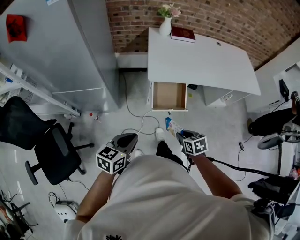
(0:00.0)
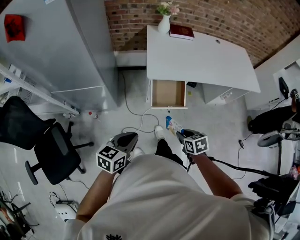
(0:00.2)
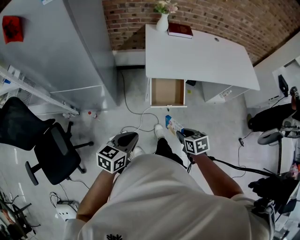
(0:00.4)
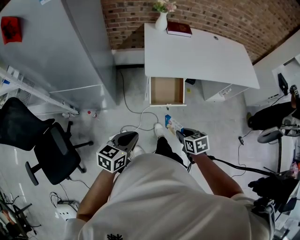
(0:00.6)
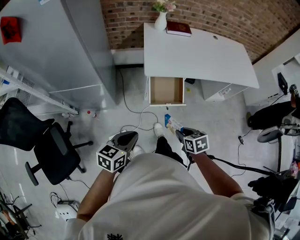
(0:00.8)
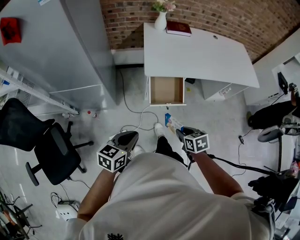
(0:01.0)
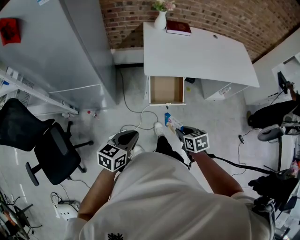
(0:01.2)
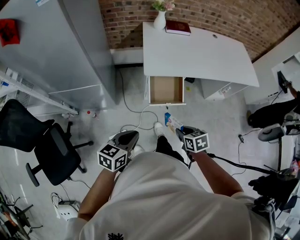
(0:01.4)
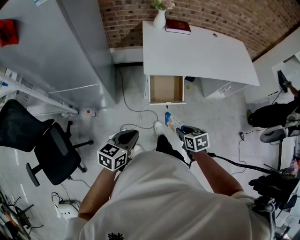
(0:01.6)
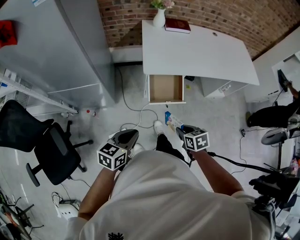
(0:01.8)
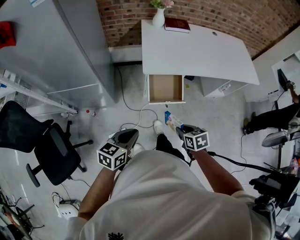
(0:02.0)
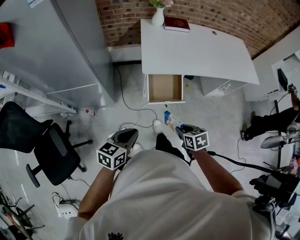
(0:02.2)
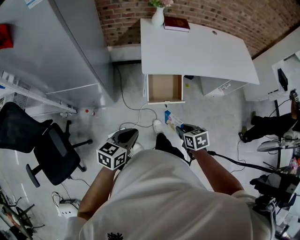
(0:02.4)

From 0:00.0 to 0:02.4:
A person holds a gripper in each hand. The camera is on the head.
From 0:00.0 to 0:02.4: There are only small adjustments of the grippers.

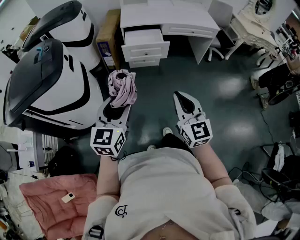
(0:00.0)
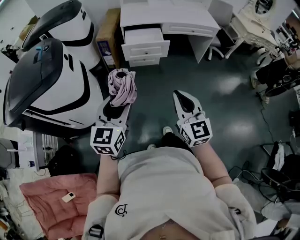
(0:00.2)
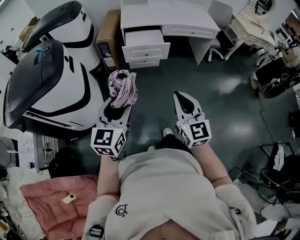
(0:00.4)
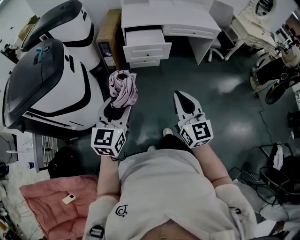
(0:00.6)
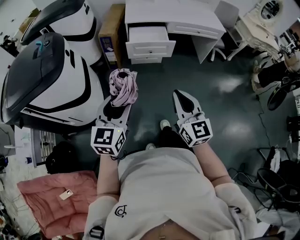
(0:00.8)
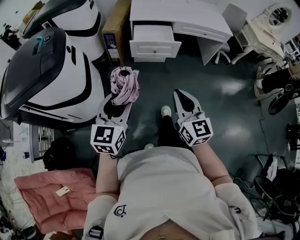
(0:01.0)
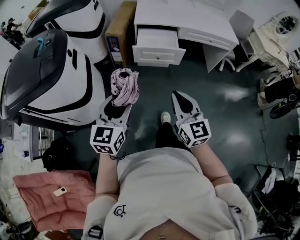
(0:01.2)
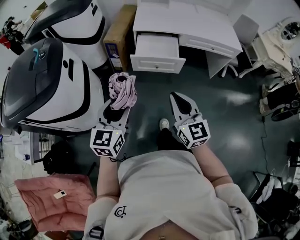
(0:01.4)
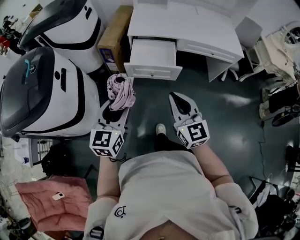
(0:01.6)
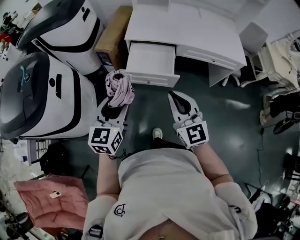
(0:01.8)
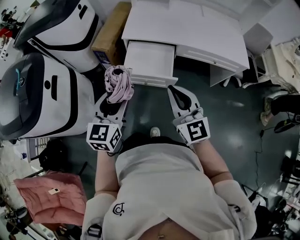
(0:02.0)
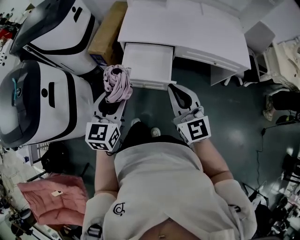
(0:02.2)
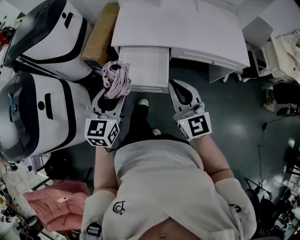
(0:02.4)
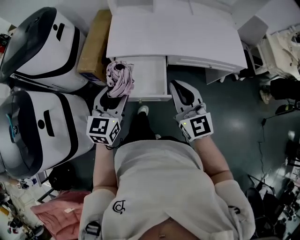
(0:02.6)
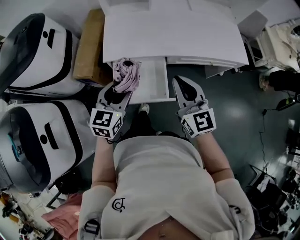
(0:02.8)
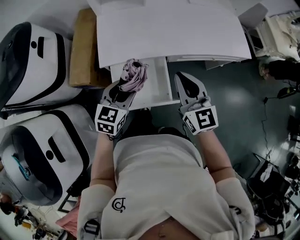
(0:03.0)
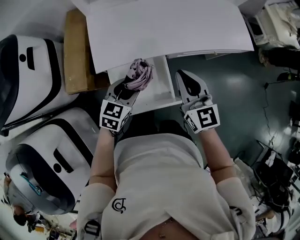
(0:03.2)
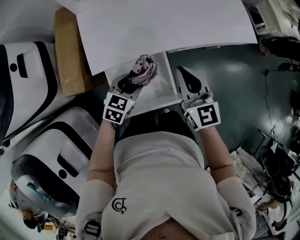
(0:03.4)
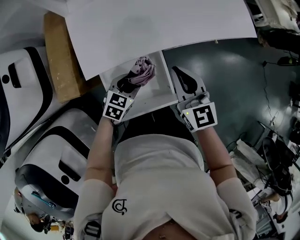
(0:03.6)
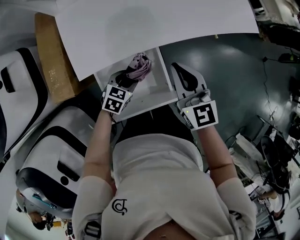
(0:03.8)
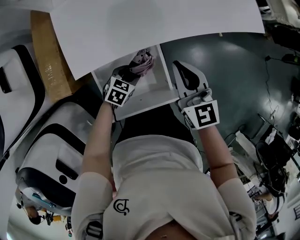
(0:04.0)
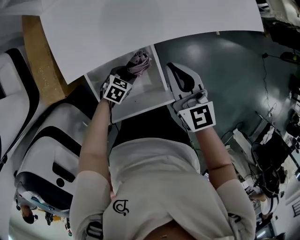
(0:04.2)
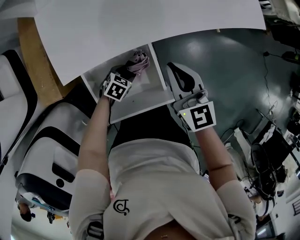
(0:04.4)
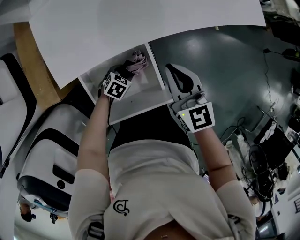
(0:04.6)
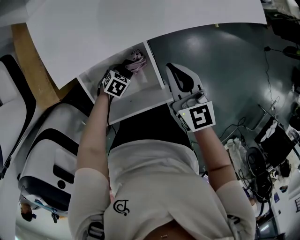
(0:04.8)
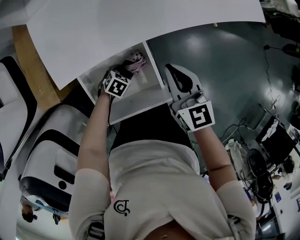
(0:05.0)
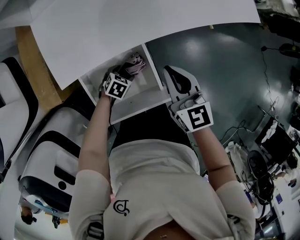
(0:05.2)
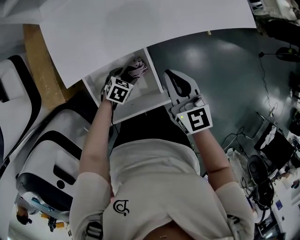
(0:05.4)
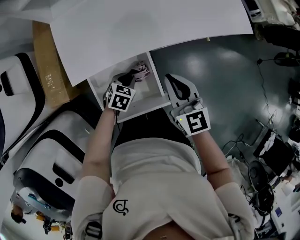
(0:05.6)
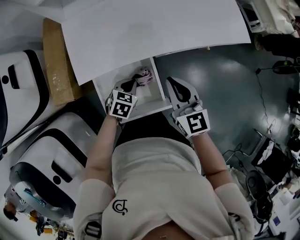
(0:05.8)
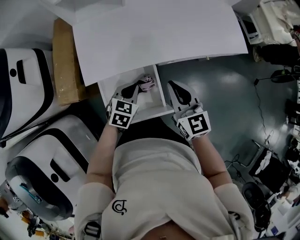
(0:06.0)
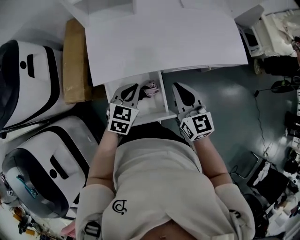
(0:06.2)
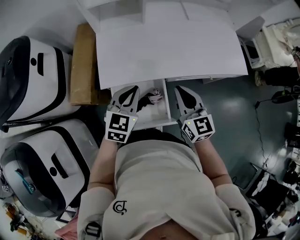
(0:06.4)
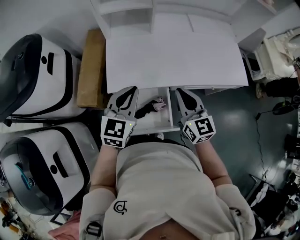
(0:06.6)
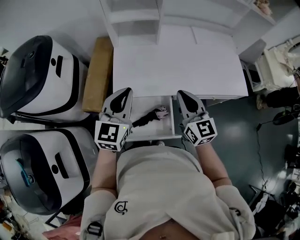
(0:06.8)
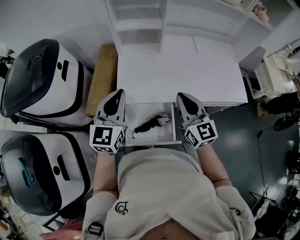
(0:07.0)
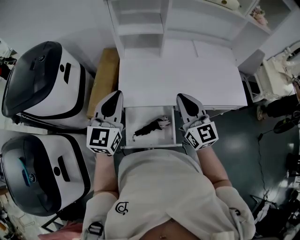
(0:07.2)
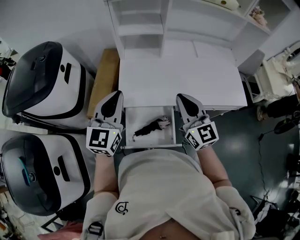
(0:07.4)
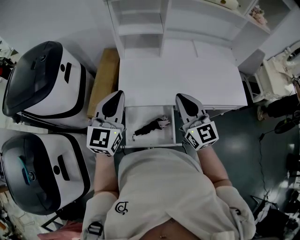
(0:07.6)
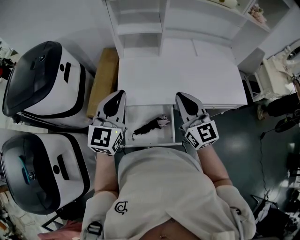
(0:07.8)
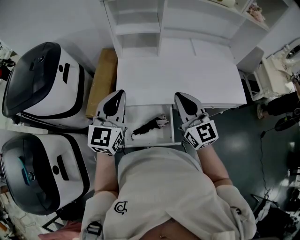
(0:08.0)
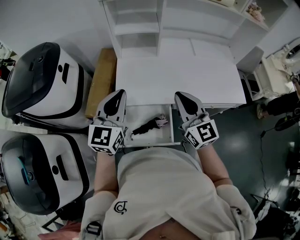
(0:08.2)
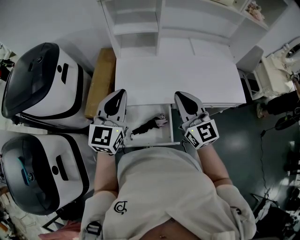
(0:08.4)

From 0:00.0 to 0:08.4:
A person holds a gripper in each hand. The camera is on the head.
From 0:00.0 to 0:01.4: Both grippers travel together forward, approximately 20 cm.
From 0:01.4 to 0:02.8: The two grippers travel together, forward, roughly 40 cm.
From 0:02.8 to 0:04.2: The right gripper shifts approximately 15 cm downward. The left gripper shifts approximately 35 cm downward, and points its fingers some 30 degrees further downward.
From 0:04.2 to 0:05.6: The left gripper shifts roughly 5 cm upward, and closes its fingers.
From 0:05.6 to 0:07.0: The left gripper goes some 40 cm upward, and points its fingers about 50 degrees further upward; the right gripper moves upward, approximately 15 cm, and changes its angle by approximately 20 degrees.
From 0:07.0 to 0:08.4: The grippers stay close to where they were, moving slightly.

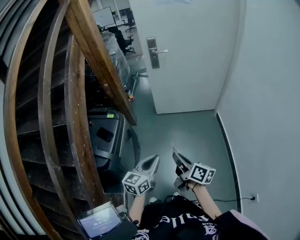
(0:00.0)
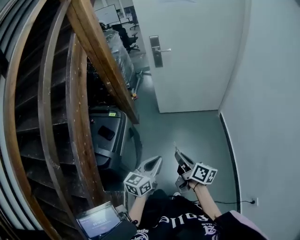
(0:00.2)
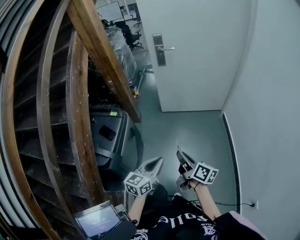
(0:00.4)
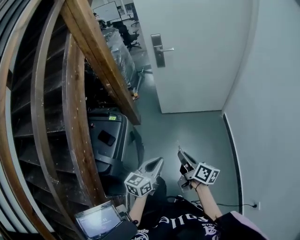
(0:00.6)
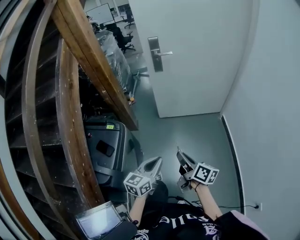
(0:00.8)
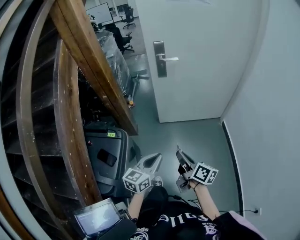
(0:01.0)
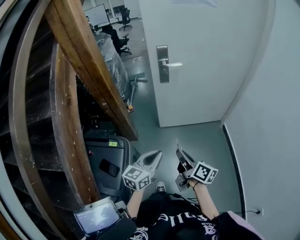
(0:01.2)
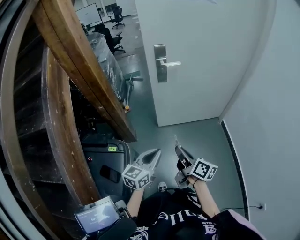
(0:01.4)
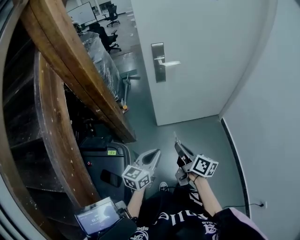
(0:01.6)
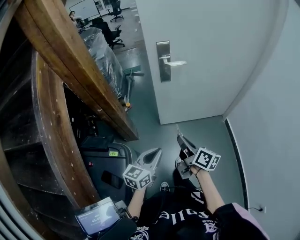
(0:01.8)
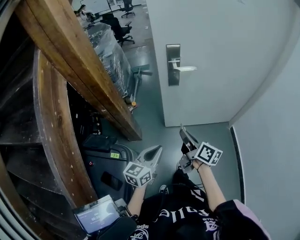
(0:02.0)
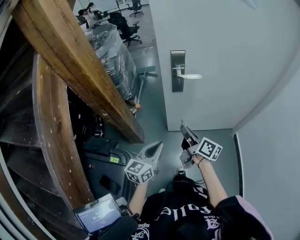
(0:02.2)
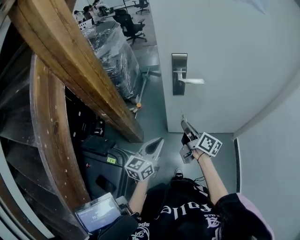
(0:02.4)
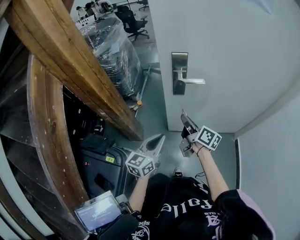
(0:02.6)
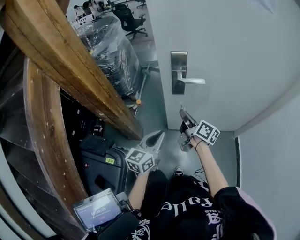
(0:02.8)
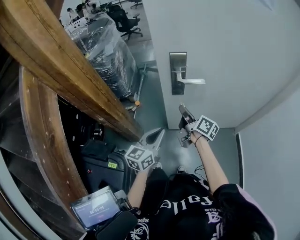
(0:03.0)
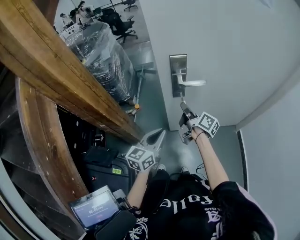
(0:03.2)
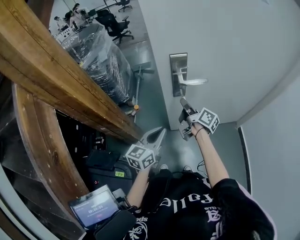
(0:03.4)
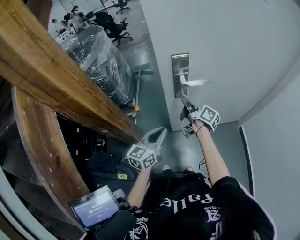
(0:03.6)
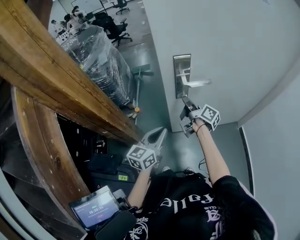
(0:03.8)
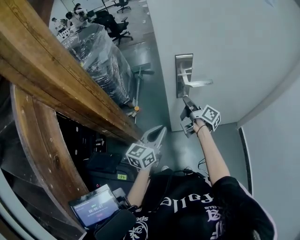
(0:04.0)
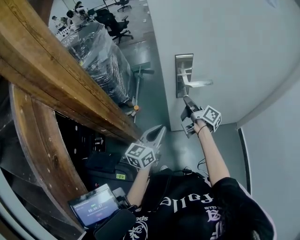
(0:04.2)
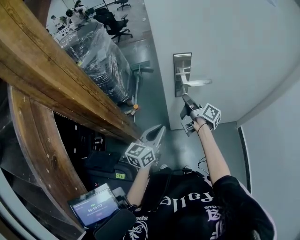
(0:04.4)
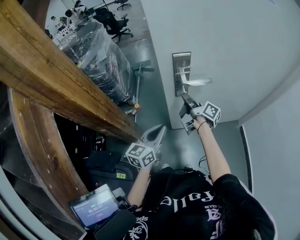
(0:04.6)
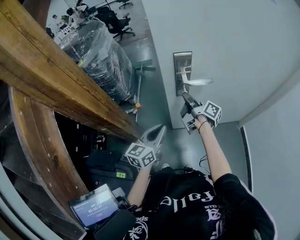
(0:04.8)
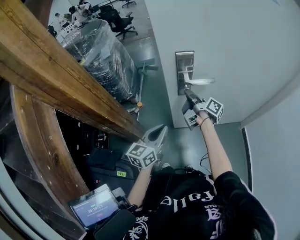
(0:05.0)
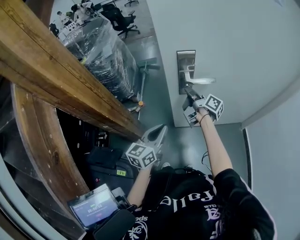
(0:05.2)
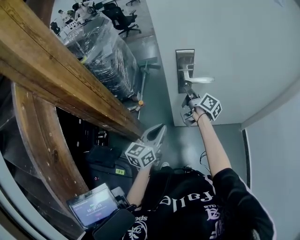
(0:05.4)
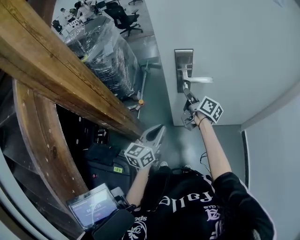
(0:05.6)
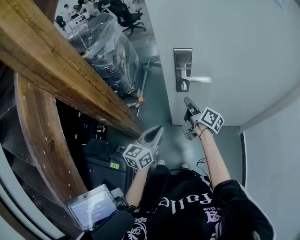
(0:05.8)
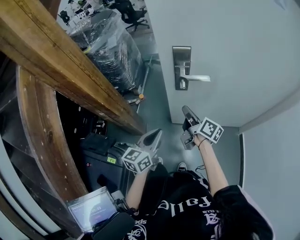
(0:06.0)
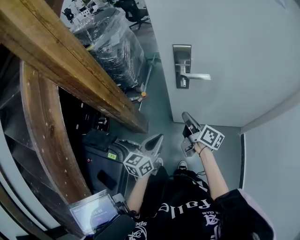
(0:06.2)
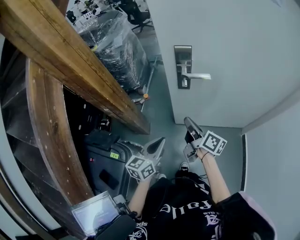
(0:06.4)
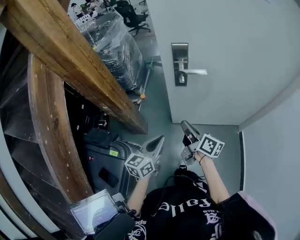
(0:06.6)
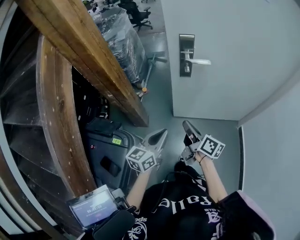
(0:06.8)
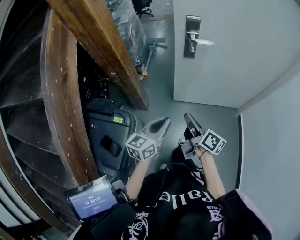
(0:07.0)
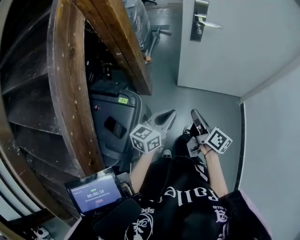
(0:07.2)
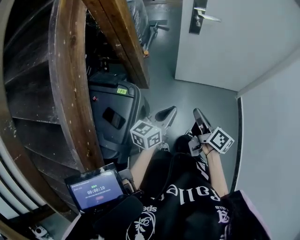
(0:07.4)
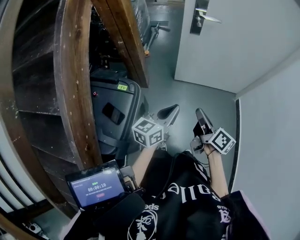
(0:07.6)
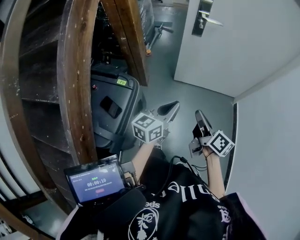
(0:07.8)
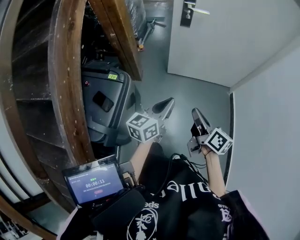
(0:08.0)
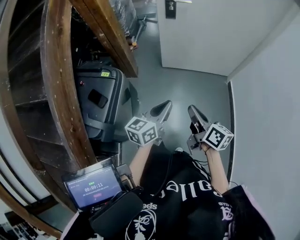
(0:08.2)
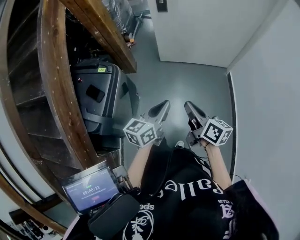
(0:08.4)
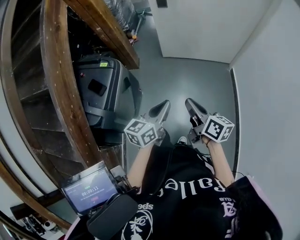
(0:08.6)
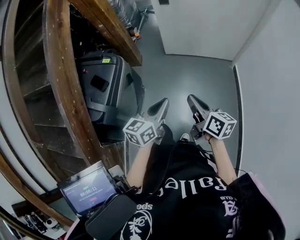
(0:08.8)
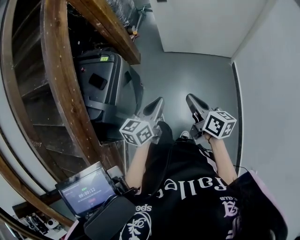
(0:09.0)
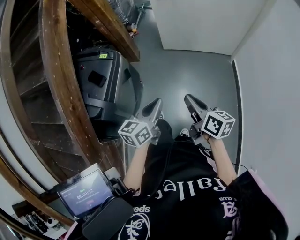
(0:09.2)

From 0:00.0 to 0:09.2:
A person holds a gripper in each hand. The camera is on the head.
From 0:00.0 to 0:01.6: The two grippers go approximately 35 cm forward.
From 0:01.6 to 0:03.0: The grippers both shift forward by roughly 30 cm.
From 0:03.0 to 0:04.6: The right gripper travels forward by roughly 10 cm, while the left gripper moves roughly 5 cm.
From 0:04.6 to 0:06.2: The grippers both shift backward by approximately 10 cm. The right gripper rotates roughly 20 degrees.
From 0:06.2 to 0:07.6: The two grippers go about 35 cm backward.
From 0:07.6 to 0:09.2: The two grippers go approximately 25 cm backward and to the right.

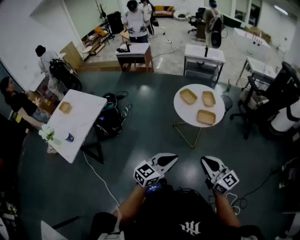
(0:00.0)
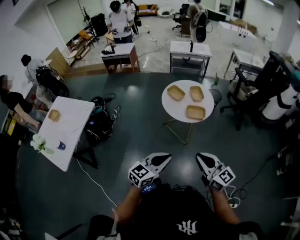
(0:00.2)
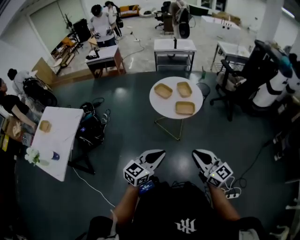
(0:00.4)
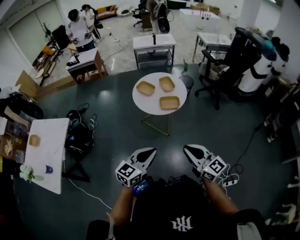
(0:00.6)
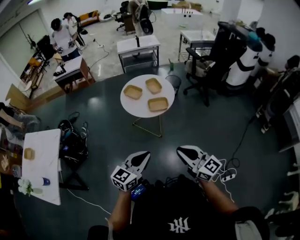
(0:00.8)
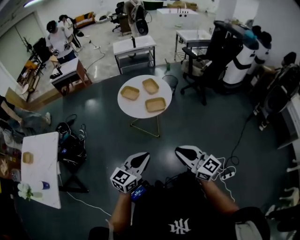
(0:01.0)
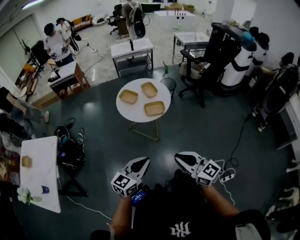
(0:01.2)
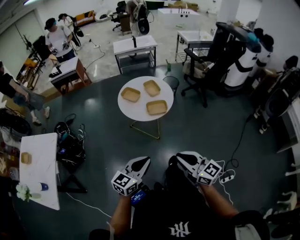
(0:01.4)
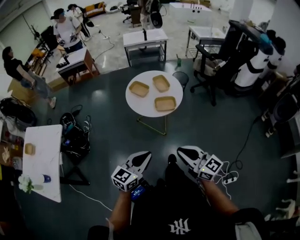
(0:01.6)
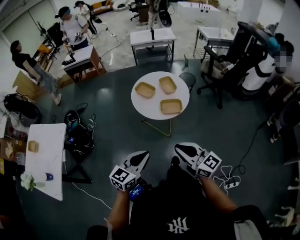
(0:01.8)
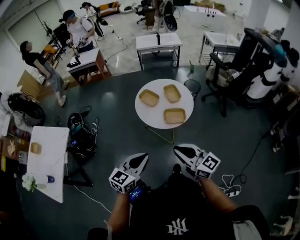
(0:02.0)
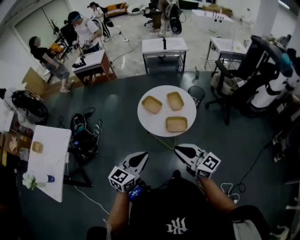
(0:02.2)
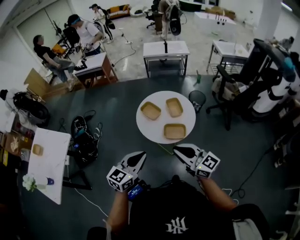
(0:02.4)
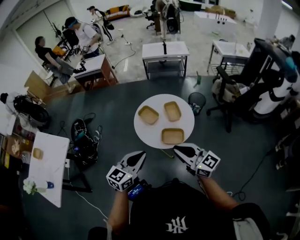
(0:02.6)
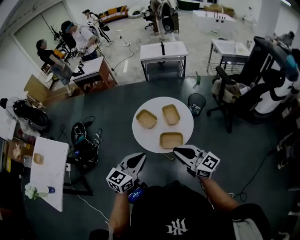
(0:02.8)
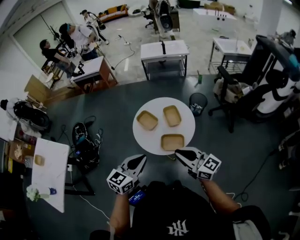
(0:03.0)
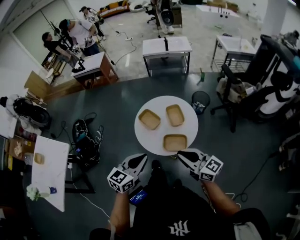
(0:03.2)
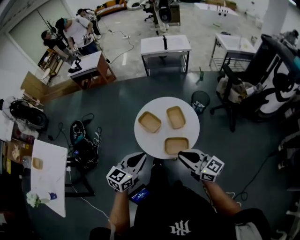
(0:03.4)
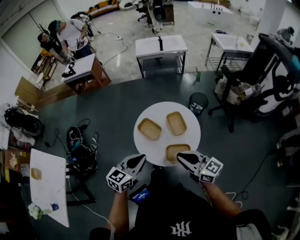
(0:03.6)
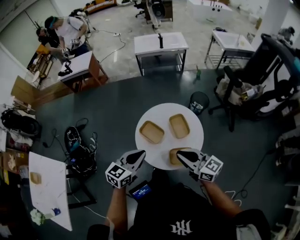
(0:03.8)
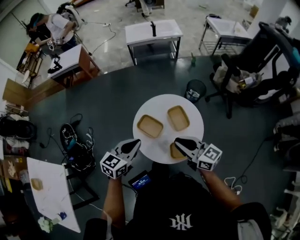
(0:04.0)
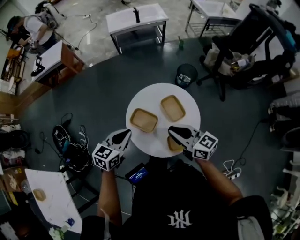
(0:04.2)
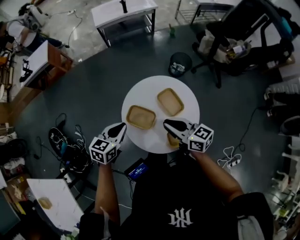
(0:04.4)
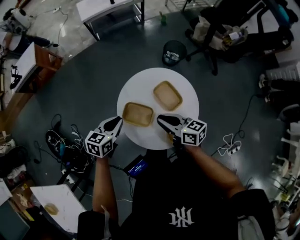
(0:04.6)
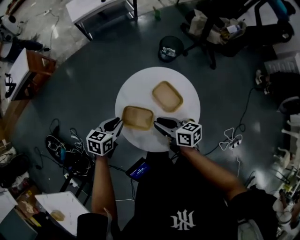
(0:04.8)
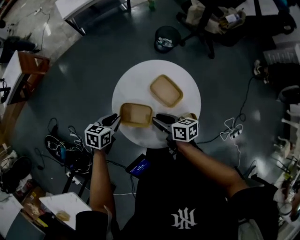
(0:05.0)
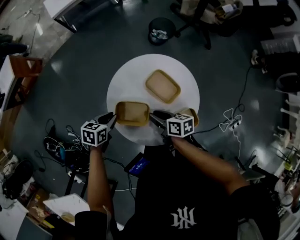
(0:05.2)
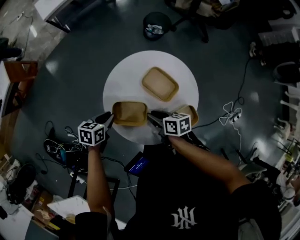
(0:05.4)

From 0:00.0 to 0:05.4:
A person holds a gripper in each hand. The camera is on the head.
From 0:00.0 to 0:01.4: The grippers stay close to where they were, moving slightly.
From 0:01.4 to 0:02.8: The grippers both shift forward by approximately 25 cm.
From 0:02.8 to 0:04.0: Both grippers move forward, some 20 cm.
From 0:04.0 to 0:05.4: The grippers both shift downward by about 25 cm. The left gripper swivels approximately 50 degrees. The right gripper tilts its fingers approximately 40 degrees downward, and opens.
